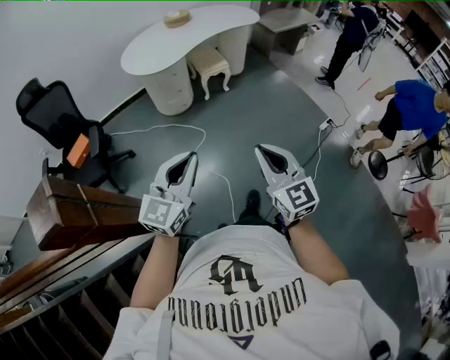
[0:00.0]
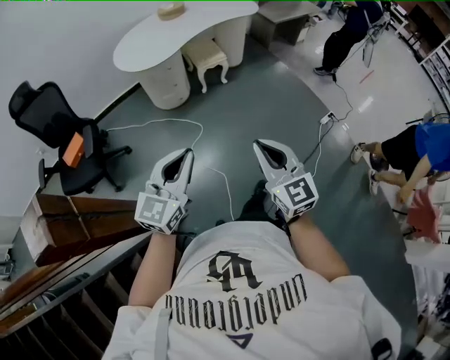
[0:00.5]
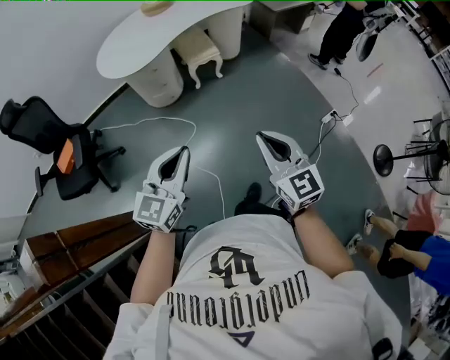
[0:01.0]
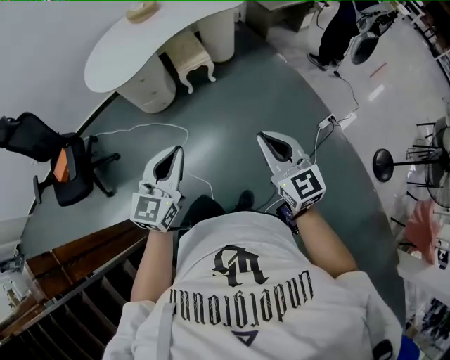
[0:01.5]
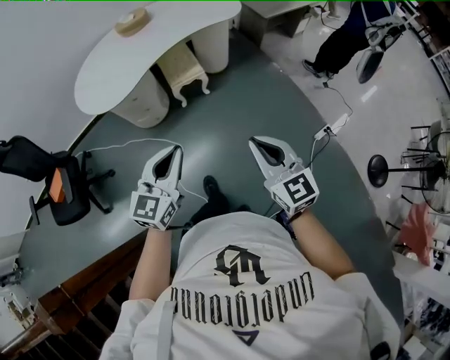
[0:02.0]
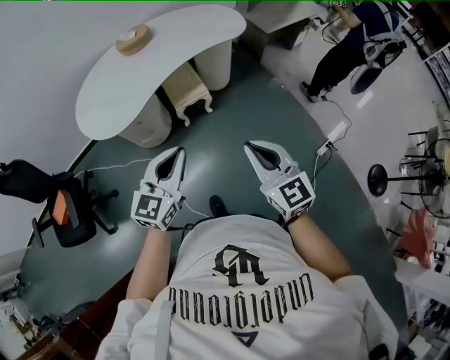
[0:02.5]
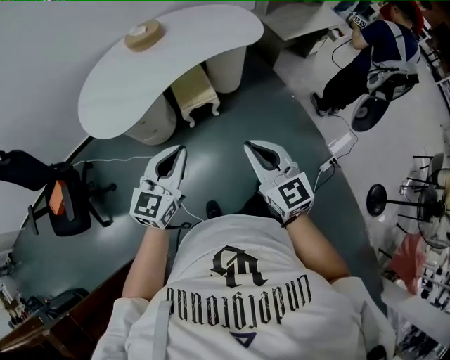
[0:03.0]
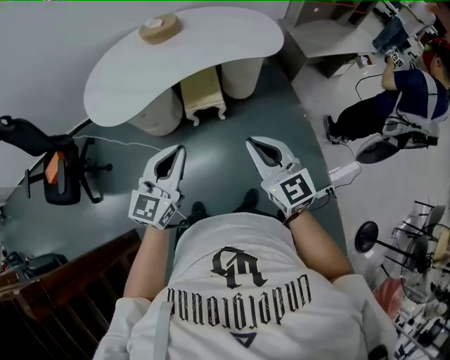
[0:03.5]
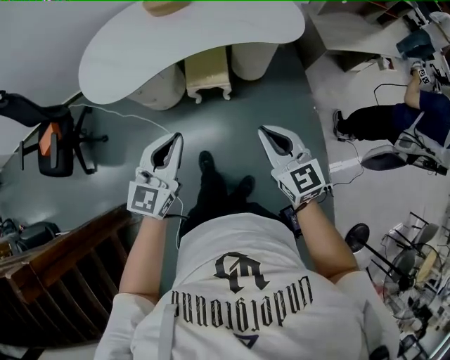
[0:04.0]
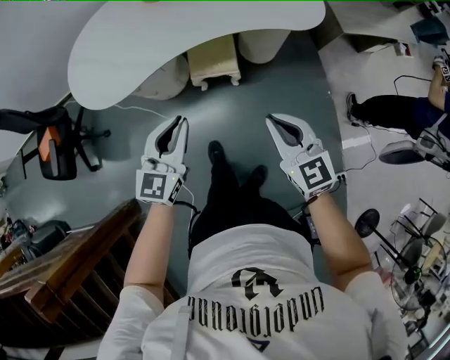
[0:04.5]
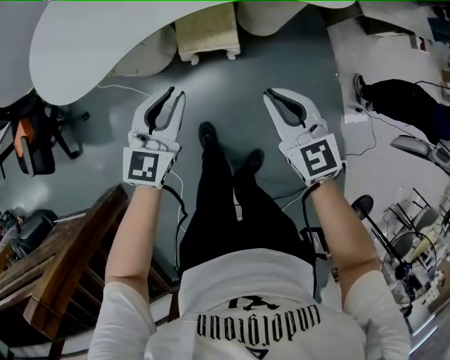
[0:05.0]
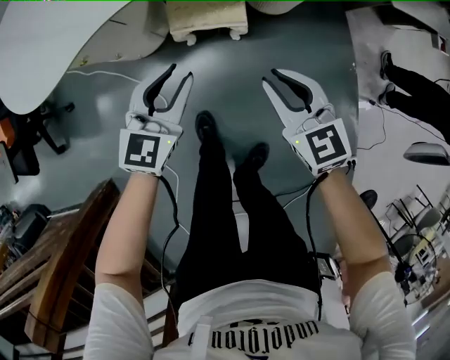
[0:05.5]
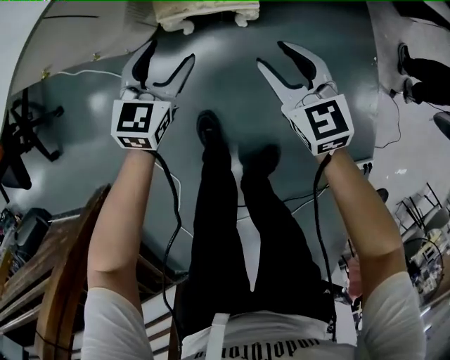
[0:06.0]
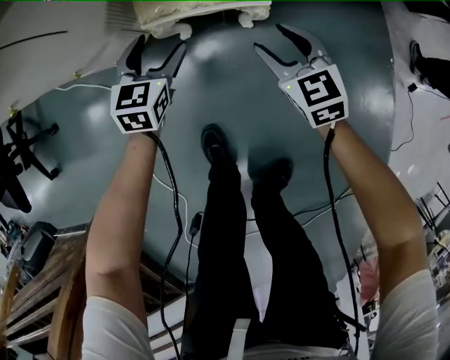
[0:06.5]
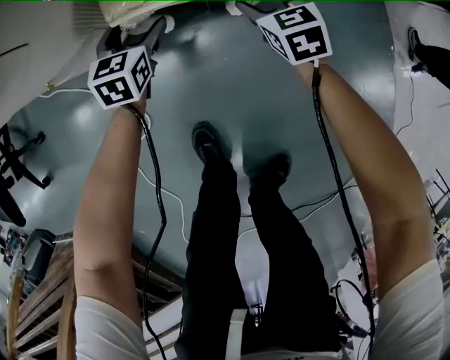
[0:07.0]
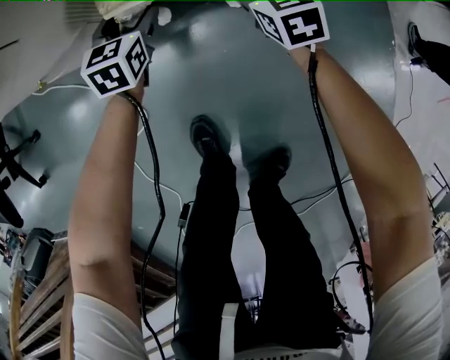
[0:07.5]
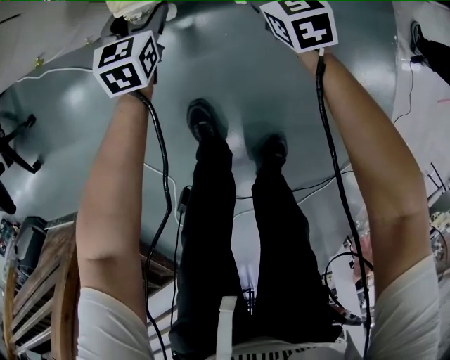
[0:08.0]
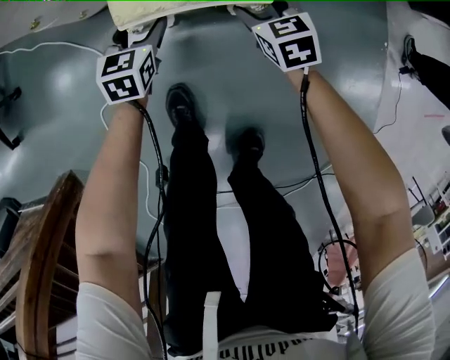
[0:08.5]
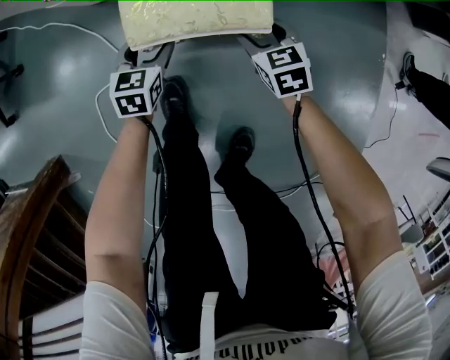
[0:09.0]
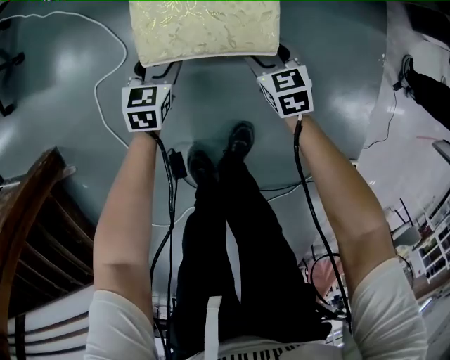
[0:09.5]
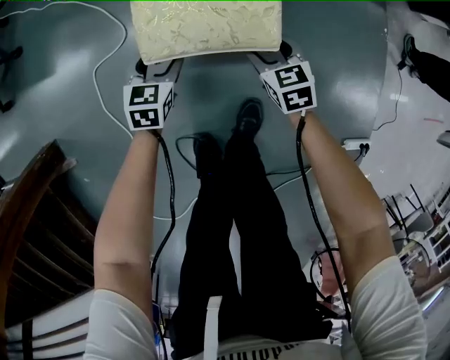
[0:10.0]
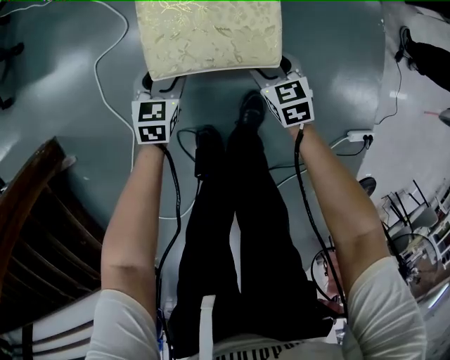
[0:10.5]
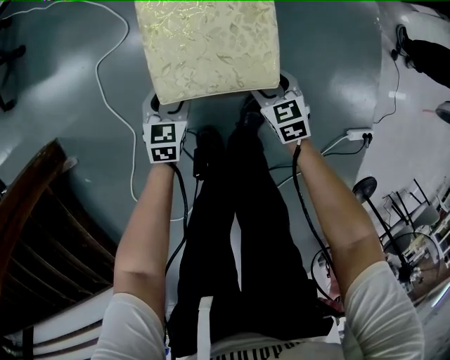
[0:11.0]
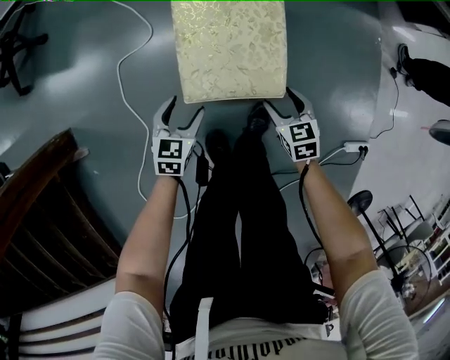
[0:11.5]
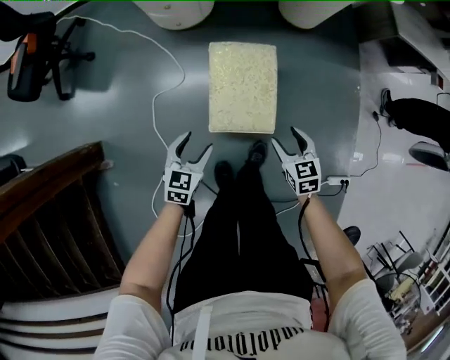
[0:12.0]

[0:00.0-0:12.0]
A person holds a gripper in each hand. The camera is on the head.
0:00.0 to 0:02.0: The two grippers travel together, forward and to the right, some 50 cm.
0:02.0 to 0:04.0: Both grippers move forward, about 30 cm. The right gripper rotates approximately 20 degrees.
0:04.0 to 0:06.0: The grippers both shift downward and forward by about 60 cm. The right gripper opens its fingers. The left gripper swivels roughly 20 degrees, and opens.
0:06.0 to 0:08.0: Both grippers move downward, some 25 cm.
0:08.0 to 0:10.0: Both grippers travel together backward, about 35 cm.
0:10.0 to 0:12.0: Both grippers travel together upward and backward, about 35 cm.

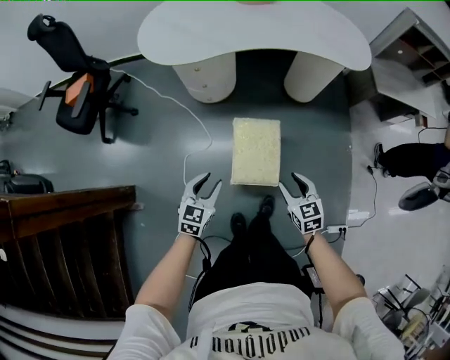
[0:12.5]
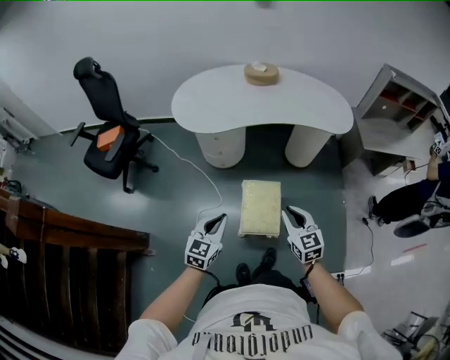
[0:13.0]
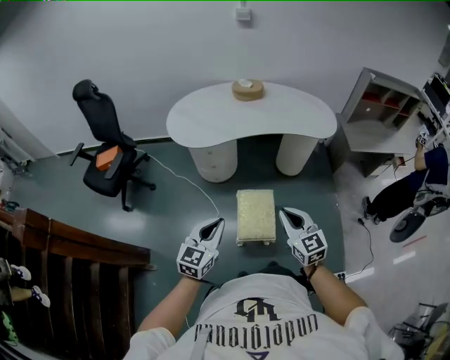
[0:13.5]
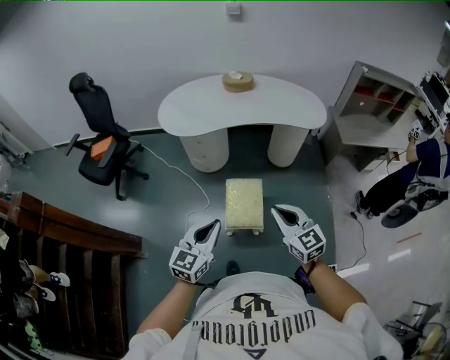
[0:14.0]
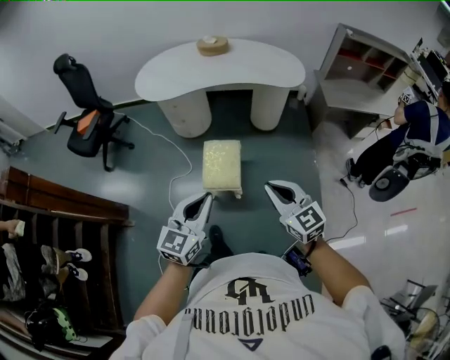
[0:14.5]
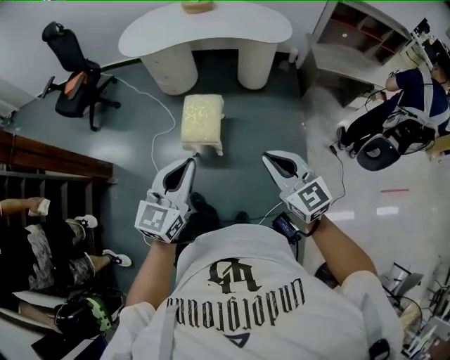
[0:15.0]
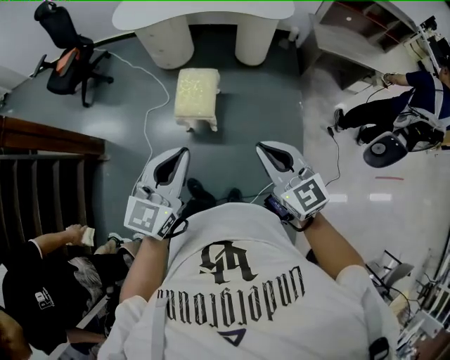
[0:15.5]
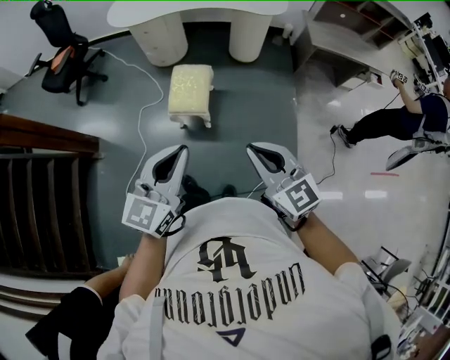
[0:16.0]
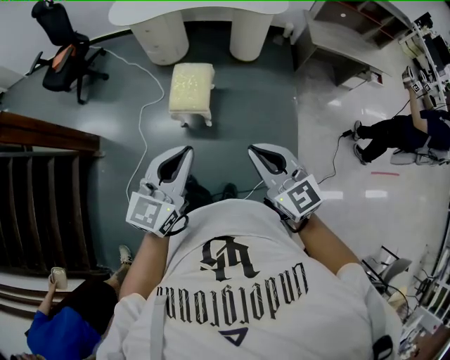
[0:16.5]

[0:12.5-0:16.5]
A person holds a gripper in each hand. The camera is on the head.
0:12.5 to 0:14.5: The right gripper shifts roughly 40 cm upward and backward, turns by some 30 degrees, and closes up. The left gripper moves upward, backward and to the right, approximately 40 cm, changes its angle by about 20 degrees, and closes up.
0:14.5 to 0:16.5: The two grippers go about 20 cm backward and to the right.

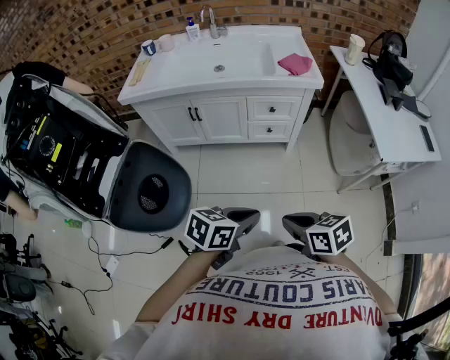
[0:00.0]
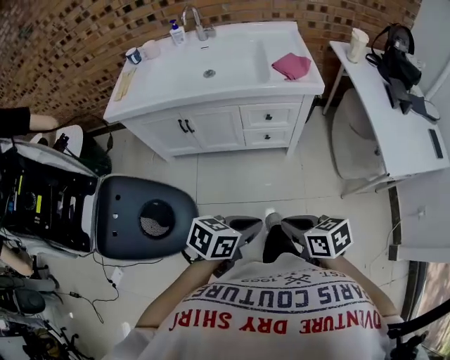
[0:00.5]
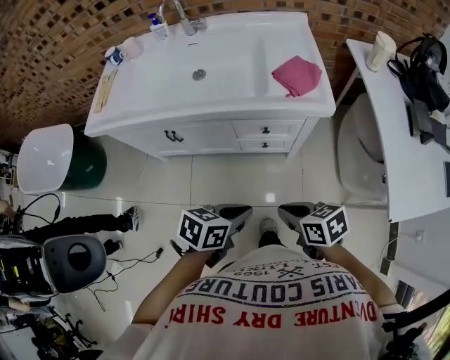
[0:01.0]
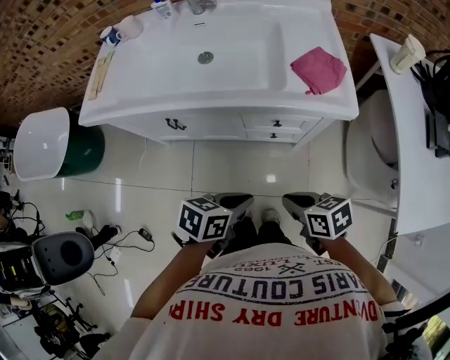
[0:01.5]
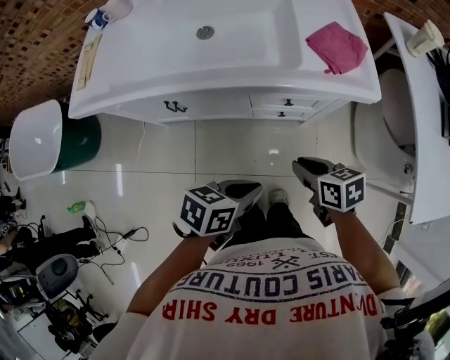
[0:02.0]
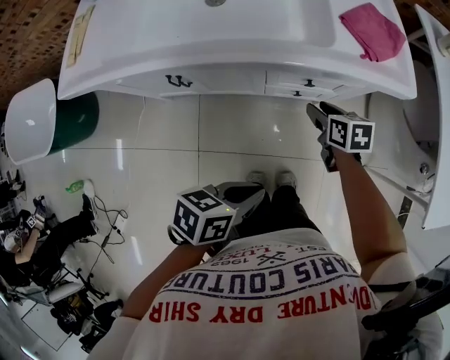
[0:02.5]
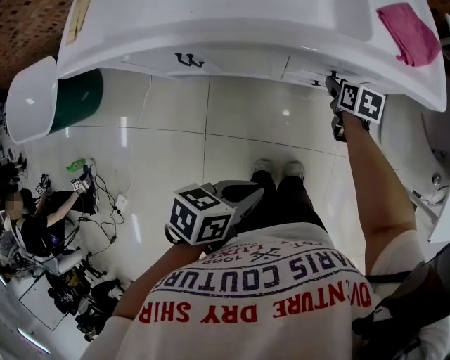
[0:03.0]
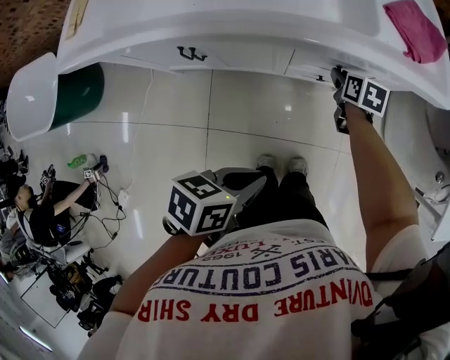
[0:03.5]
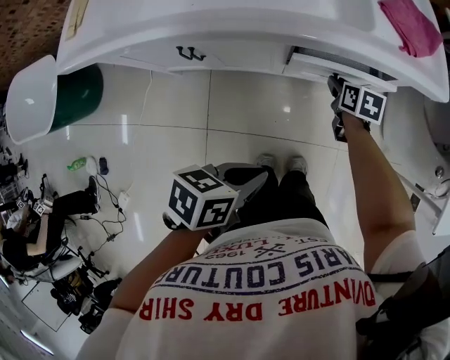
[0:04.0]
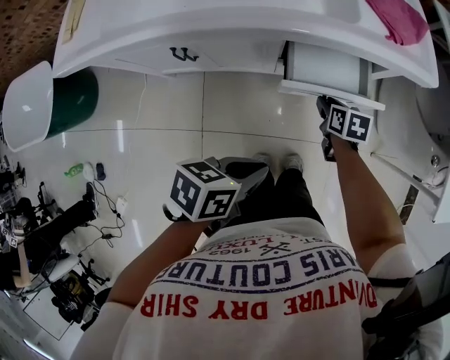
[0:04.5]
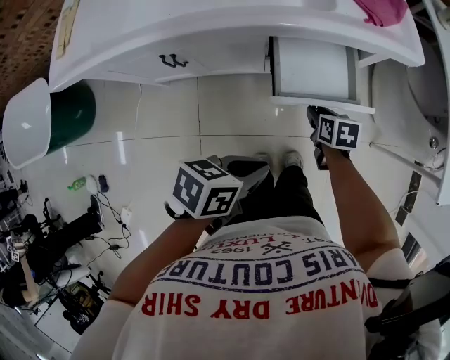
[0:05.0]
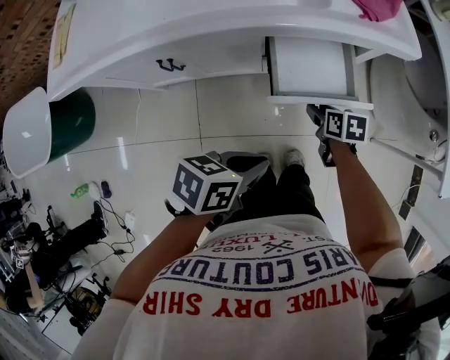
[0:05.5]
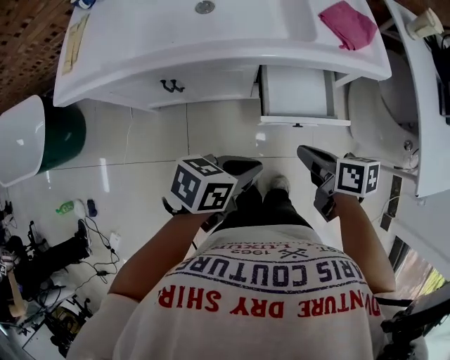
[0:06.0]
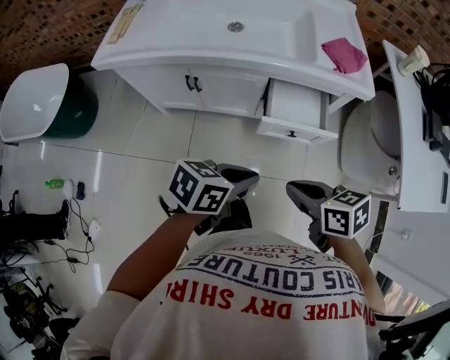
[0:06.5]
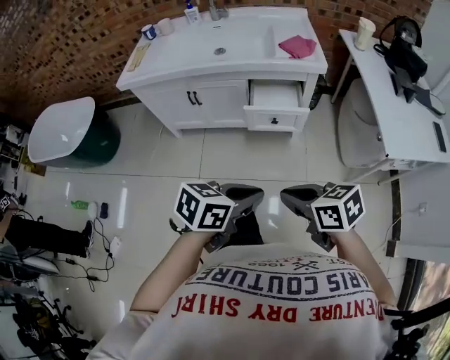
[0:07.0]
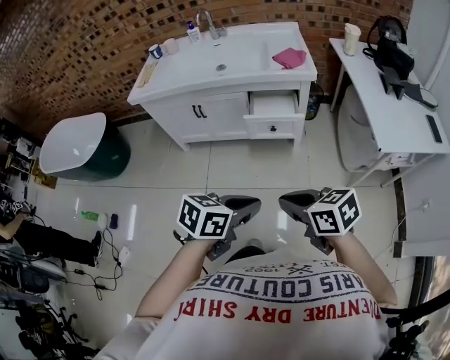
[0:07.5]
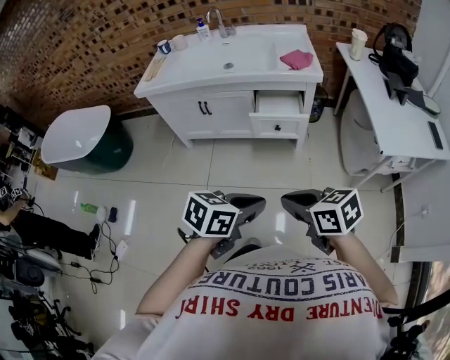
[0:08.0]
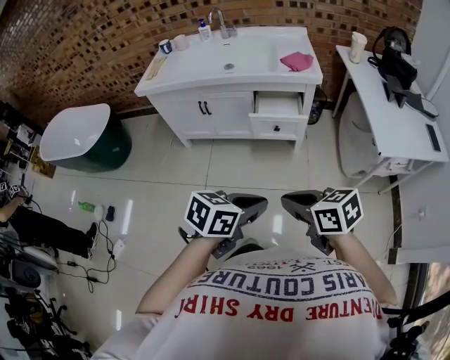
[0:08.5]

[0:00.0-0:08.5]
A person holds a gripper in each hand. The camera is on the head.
0:00.0 to 0:02.0: The left gripper ends up roughly 40 cm from where it was. The right gripper moves some 50 cm.
0:02.0 to 0:04.0: The right gripper is displaced downward by about 20 cm, and rotates about 20 degrees; the left gripper moves approximately 10 cm.
0:04.0 to 0:06.5: The right gripper moves roughly 40 cm, changes its angle by approximately 30 degrees, and closes its fingers; the left gripper shifts some 10 cm upward.
0:06.5 to 0:08.5: The left gripper ends up some 35 cm from where it was, while the right gripper moves some 30 cm.

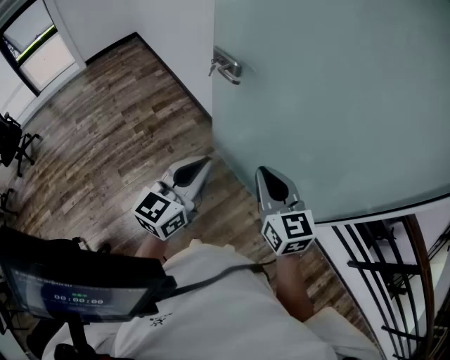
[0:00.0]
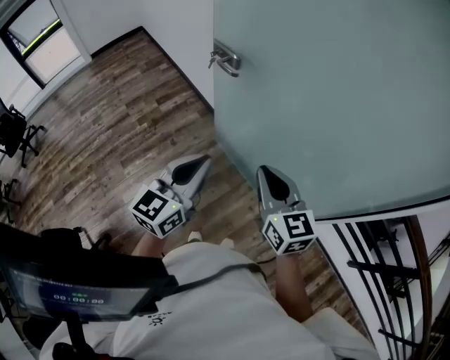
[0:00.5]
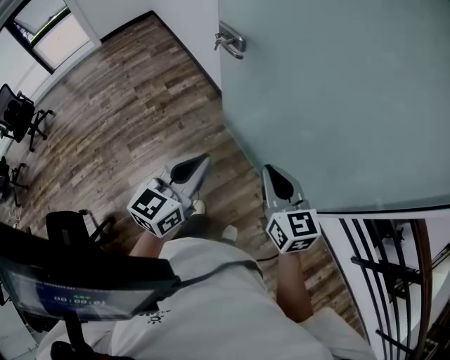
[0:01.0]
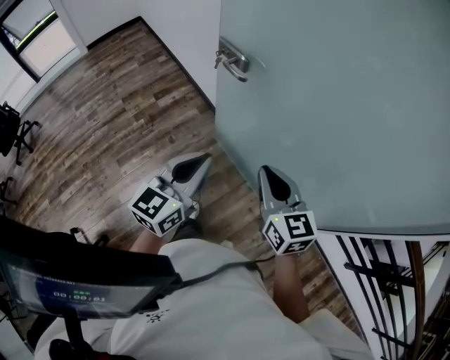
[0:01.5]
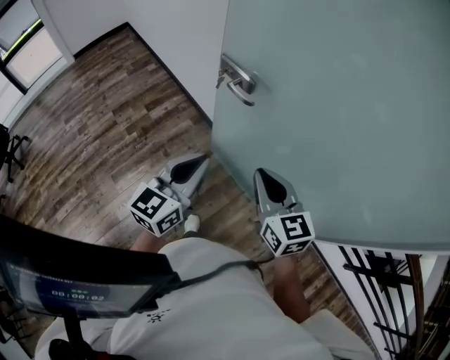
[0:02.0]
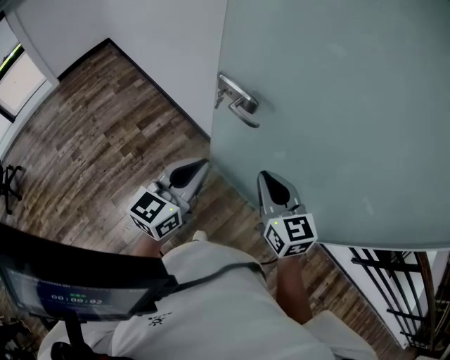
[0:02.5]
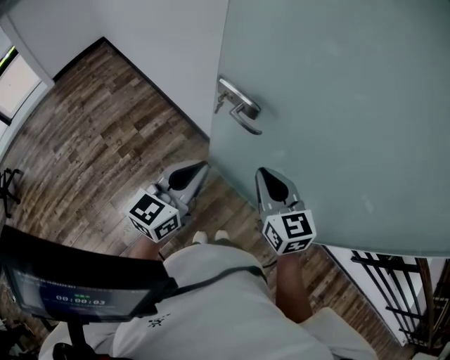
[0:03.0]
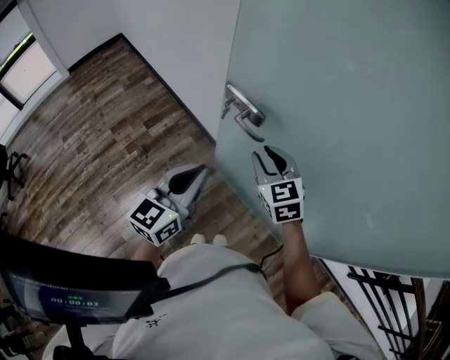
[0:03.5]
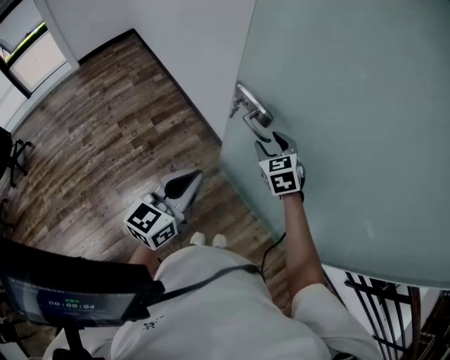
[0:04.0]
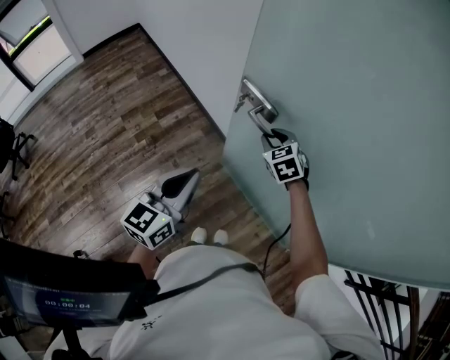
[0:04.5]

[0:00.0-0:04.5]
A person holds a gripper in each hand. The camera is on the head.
0:00.0 to 0:02.0: The two grippers go approximately 15 cm forward and to the left.
0:02.0 to 0:04.5: The right gripper shifts roughly 25 cm forward and downward, rotates approximately 40 degrees, and opens up. Meanwhile the left gripper goes about 10 cm to the left and forward.
